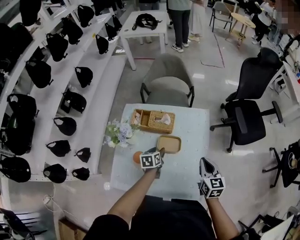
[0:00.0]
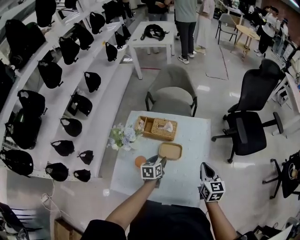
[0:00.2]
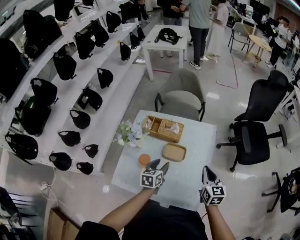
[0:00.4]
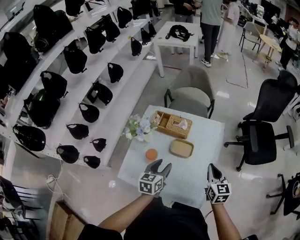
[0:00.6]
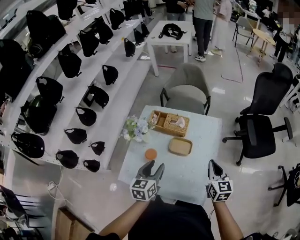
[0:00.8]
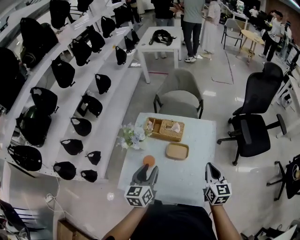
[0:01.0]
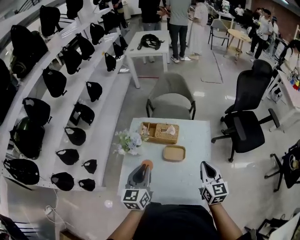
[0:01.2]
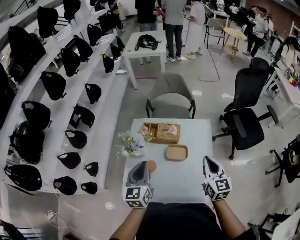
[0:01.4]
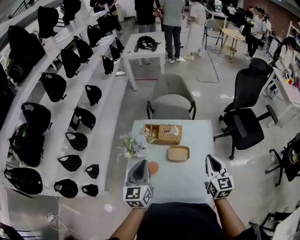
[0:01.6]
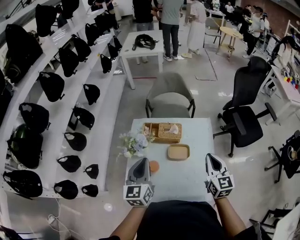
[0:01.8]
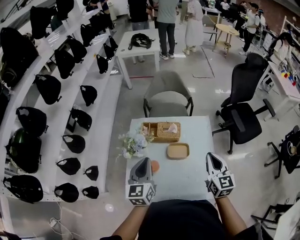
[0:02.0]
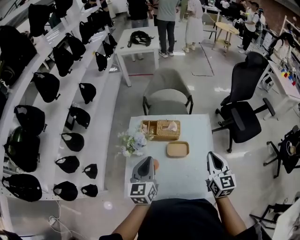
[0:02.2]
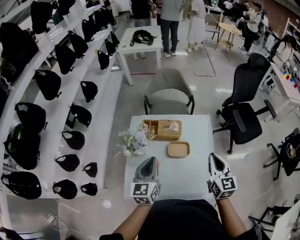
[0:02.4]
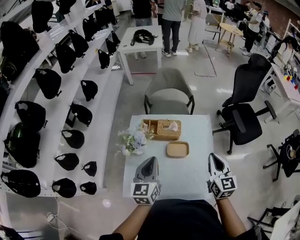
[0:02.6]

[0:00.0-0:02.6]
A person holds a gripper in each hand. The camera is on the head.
0:00.0 to 0:01.2: The left gripper shifts approximately 30 cm upward and backward, points its fingers approximately 30 degrees further upward, and closes; the right gripper goes some 10 cm upward.

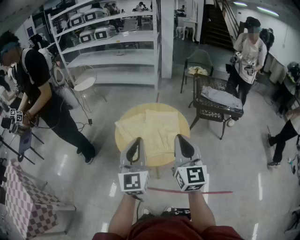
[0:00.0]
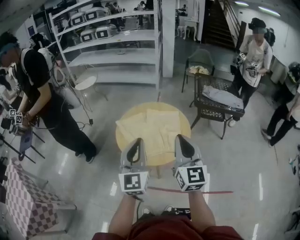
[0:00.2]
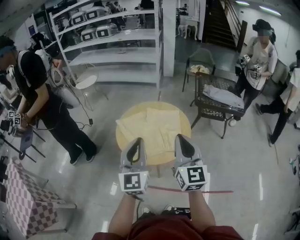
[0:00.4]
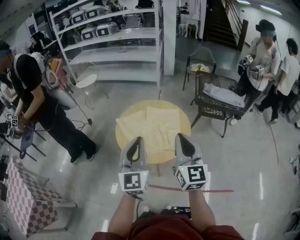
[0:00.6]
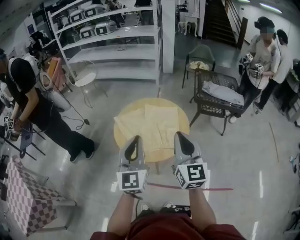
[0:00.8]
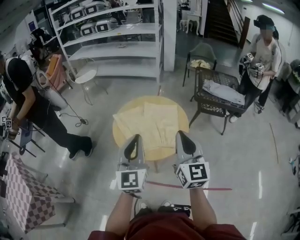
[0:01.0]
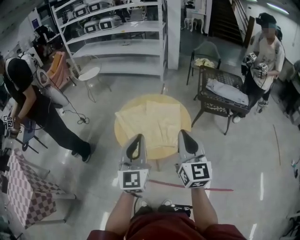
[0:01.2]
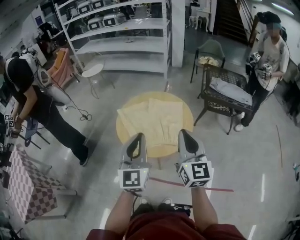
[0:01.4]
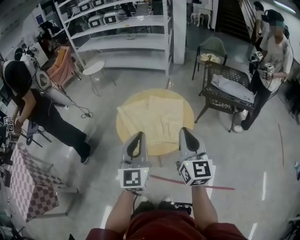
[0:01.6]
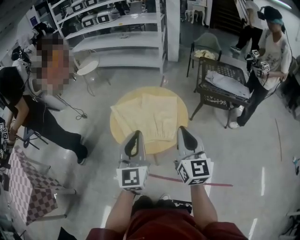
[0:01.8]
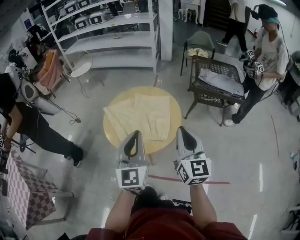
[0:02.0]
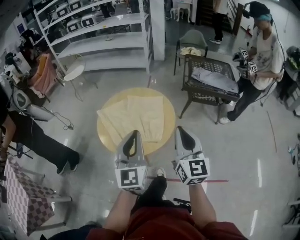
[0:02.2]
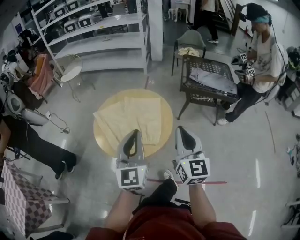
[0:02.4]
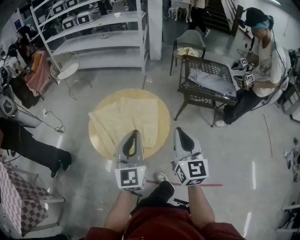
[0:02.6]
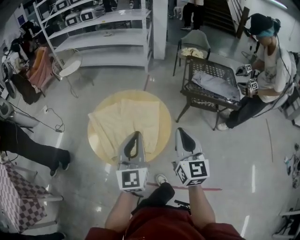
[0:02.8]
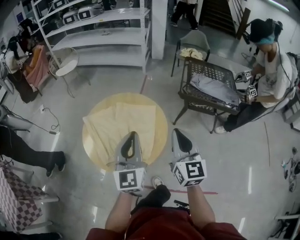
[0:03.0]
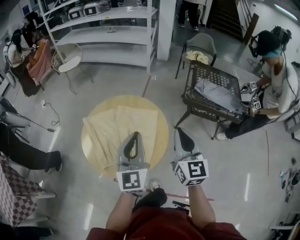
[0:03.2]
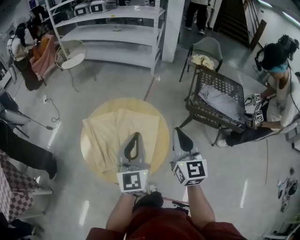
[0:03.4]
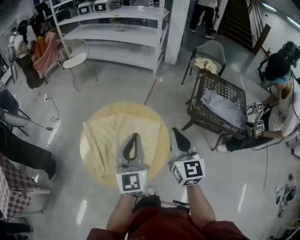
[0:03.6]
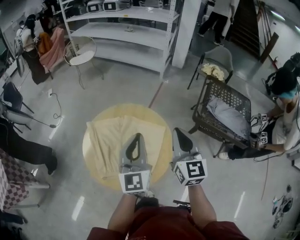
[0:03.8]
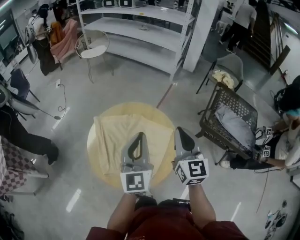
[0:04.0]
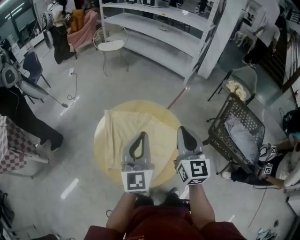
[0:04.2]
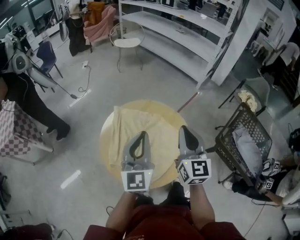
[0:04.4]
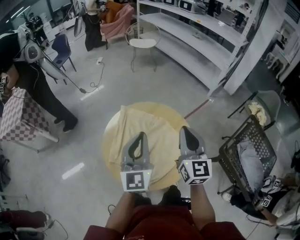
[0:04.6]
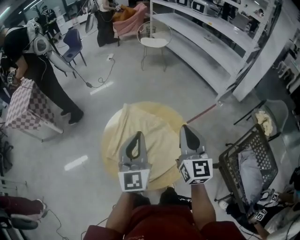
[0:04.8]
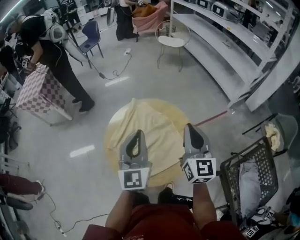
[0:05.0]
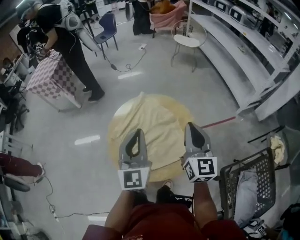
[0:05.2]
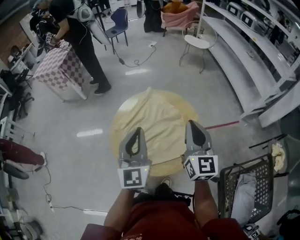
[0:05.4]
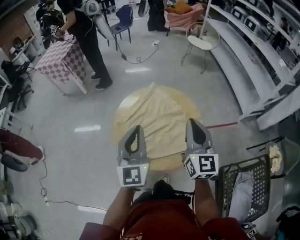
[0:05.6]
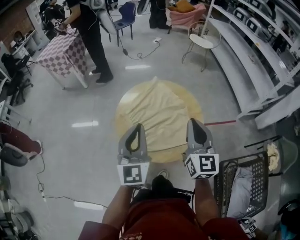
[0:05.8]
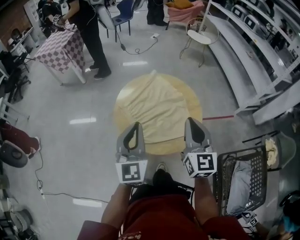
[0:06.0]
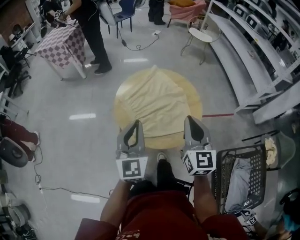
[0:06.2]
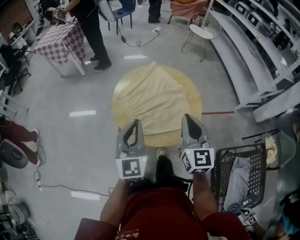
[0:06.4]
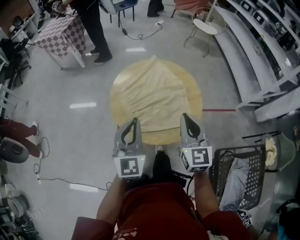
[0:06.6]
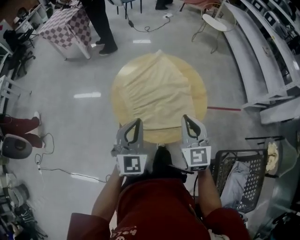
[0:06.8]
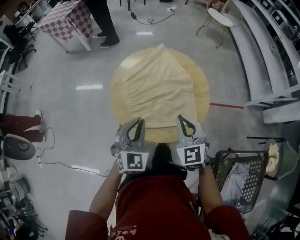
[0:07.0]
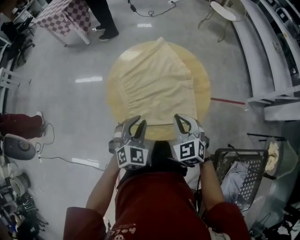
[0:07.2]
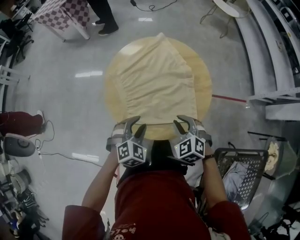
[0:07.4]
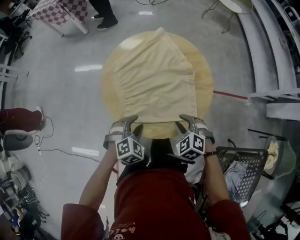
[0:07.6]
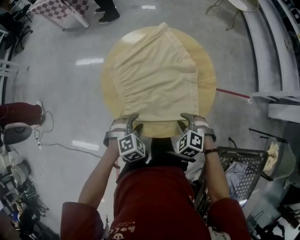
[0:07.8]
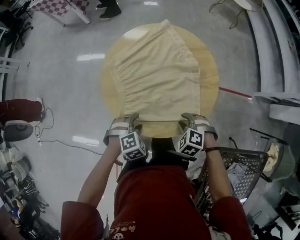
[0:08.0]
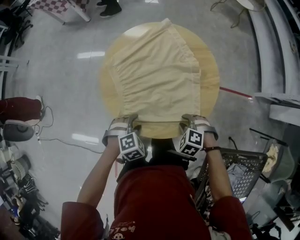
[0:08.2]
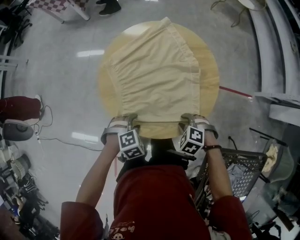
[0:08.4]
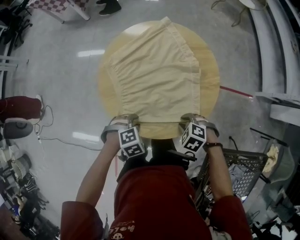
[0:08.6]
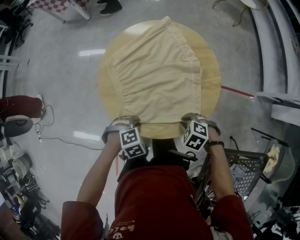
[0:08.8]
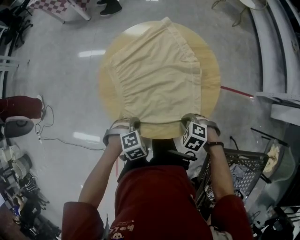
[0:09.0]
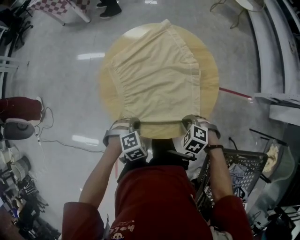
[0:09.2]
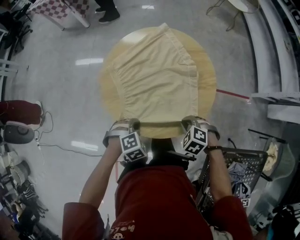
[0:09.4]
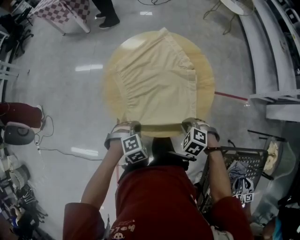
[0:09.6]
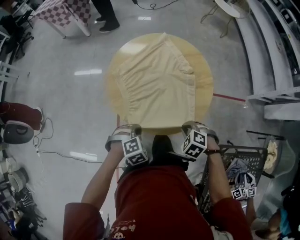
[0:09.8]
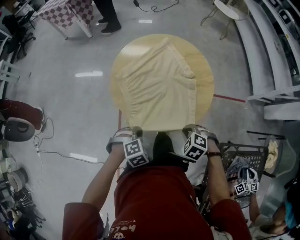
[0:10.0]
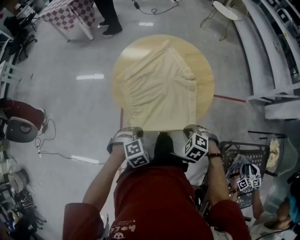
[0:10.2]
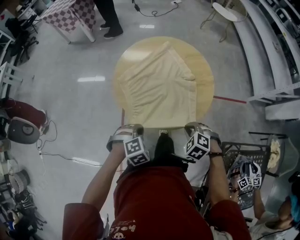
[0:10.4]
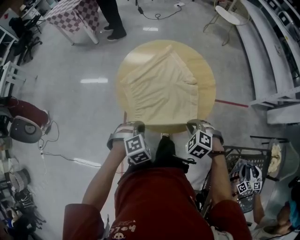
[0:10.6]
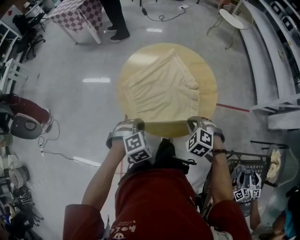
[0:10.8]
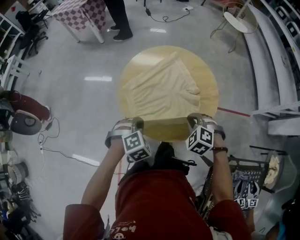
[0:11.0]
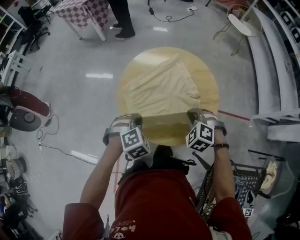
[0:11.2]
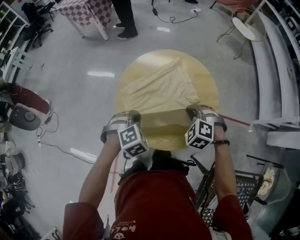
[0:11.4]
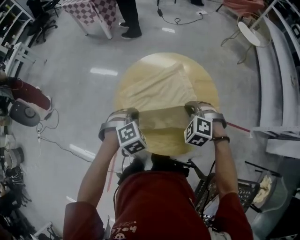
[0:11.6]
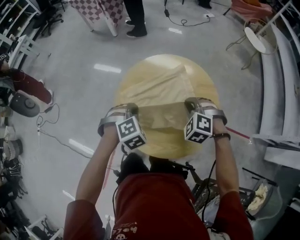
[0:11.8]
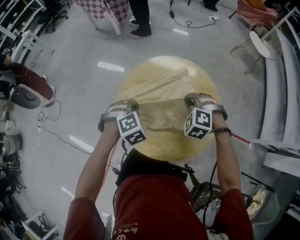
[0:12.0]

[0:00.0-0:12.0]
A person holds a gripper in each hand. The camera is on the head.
0:00.0 to 0:01.6: Both grippers move to the right, some 5 cm.
0:01.6 to 0:03.0: Both grippers travel together forward, to the right and downward, about 20 cm.
0:03.0 to 0:04.4: The right gripper ends up approximately 25 cm from where it was, and changes its angle by some 30 degrees. Meanwhile the left gripper shifts by approximately 15 cm, and turns by approximately 30 degrees.
0:04.4 to 0:06.0: The right gripper ends up about 10 cm from where it was, and rotates about 40 degrees. The left gripper moves approximately 20 cm, and turns by roughly 40 degrees.
0:06.0 to 0:07.6: Both grippers travel together downward, about 30 cm. The left gripper tips its fingers downward by some 60 degrees, and opens its fingers, while the right gripper tilts its fingers about 60 degrees downward, and opens.
0:07.6 to 0:09.0: Both grippers travel together downward, roughly 5 cm. The left gripper changes its angle by roughly 20 degrees, and closes. Meanwhile the right gripper turns by about 30 degrees, and closes up.
0:09.0 to 0:10.4: The left gripper shifts by approximately 10 cm, while the right gripper changes place by roughly 10 cm.
0:10.4 to 0:12.0: The grippers both shift forward by about 25 cm. The left gripper changes its angle by approximately 20 degrees; the right gripper turns by roughly 30 degrees.

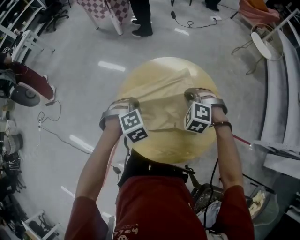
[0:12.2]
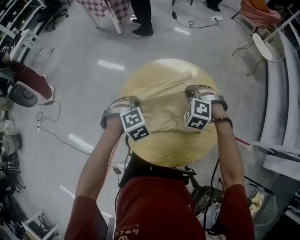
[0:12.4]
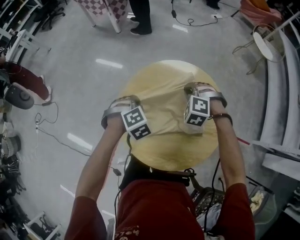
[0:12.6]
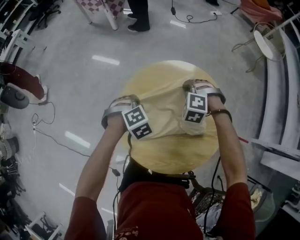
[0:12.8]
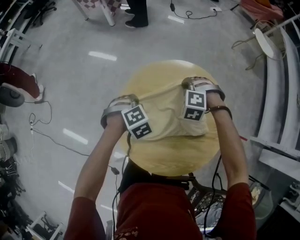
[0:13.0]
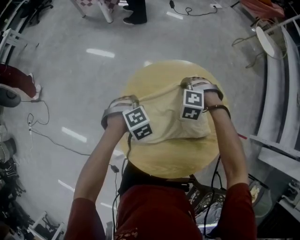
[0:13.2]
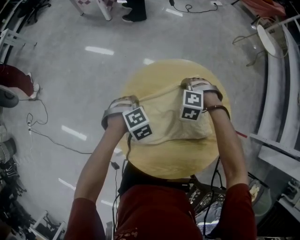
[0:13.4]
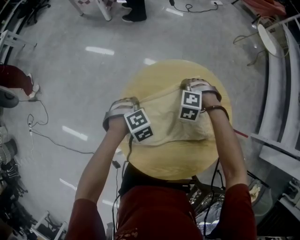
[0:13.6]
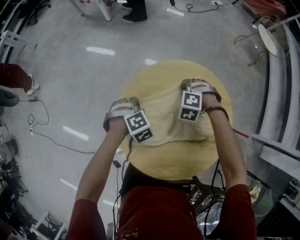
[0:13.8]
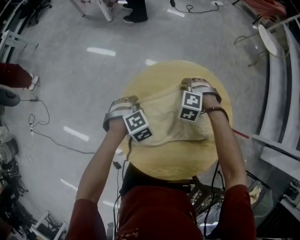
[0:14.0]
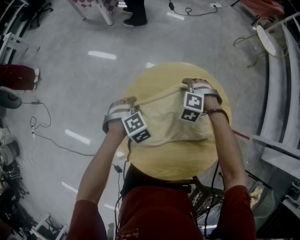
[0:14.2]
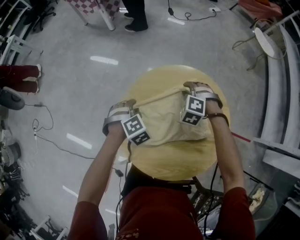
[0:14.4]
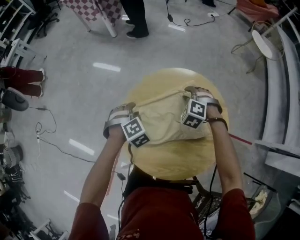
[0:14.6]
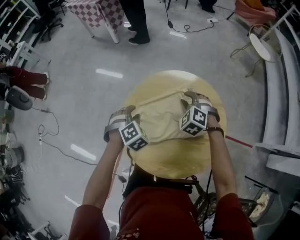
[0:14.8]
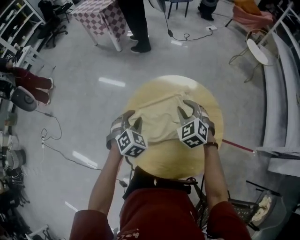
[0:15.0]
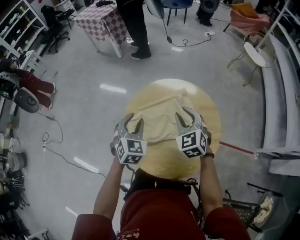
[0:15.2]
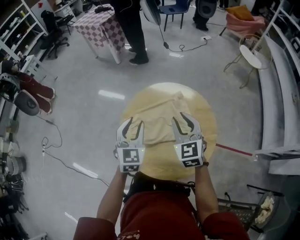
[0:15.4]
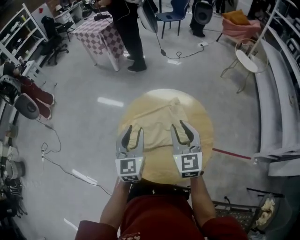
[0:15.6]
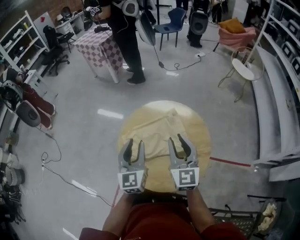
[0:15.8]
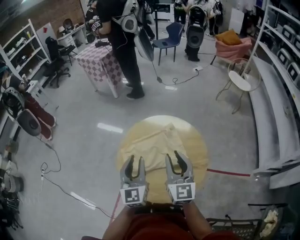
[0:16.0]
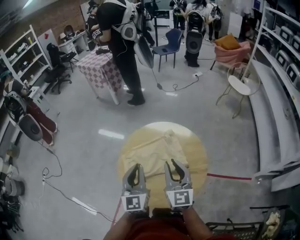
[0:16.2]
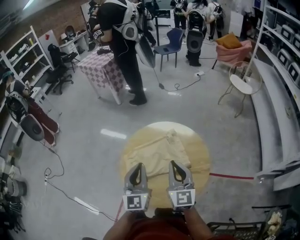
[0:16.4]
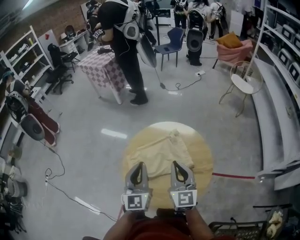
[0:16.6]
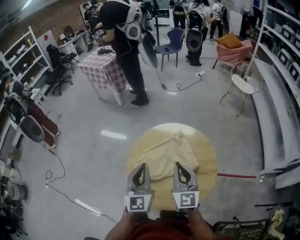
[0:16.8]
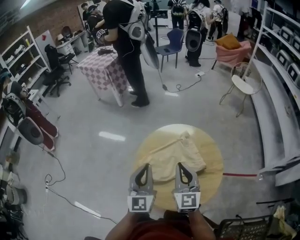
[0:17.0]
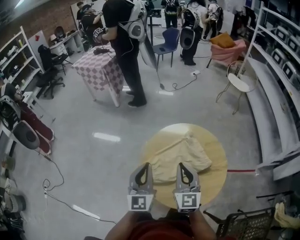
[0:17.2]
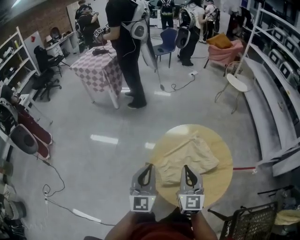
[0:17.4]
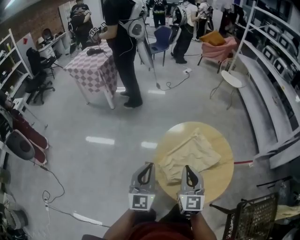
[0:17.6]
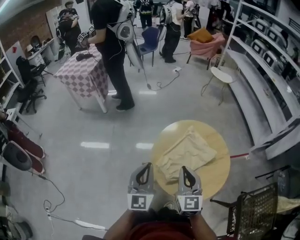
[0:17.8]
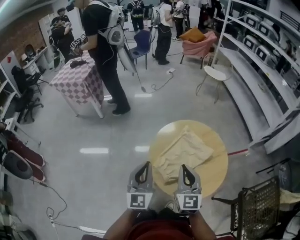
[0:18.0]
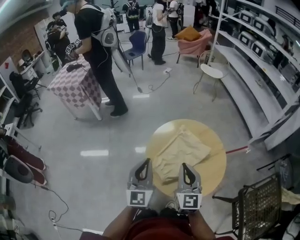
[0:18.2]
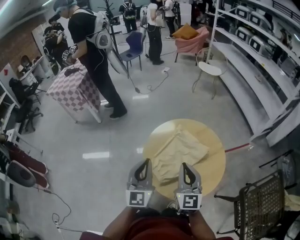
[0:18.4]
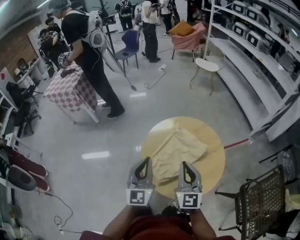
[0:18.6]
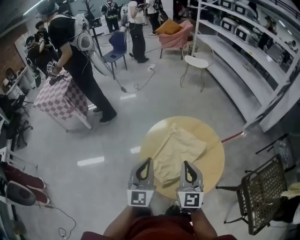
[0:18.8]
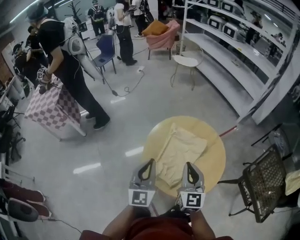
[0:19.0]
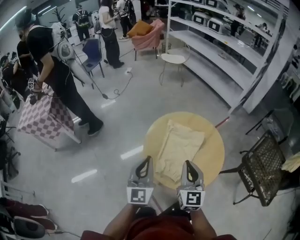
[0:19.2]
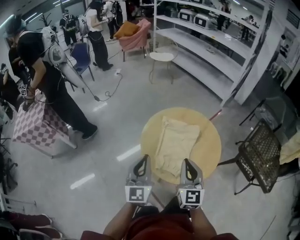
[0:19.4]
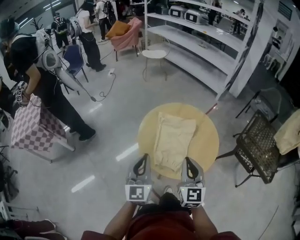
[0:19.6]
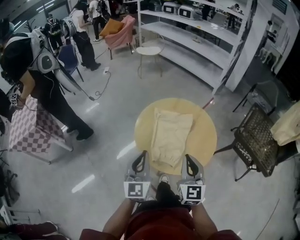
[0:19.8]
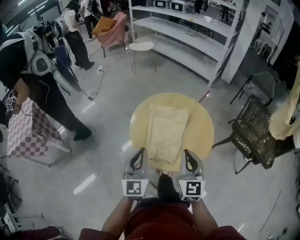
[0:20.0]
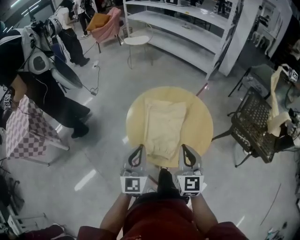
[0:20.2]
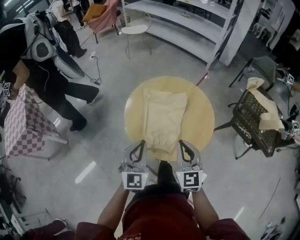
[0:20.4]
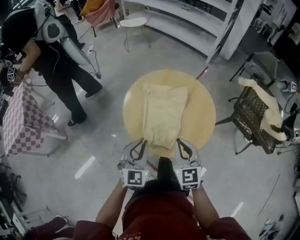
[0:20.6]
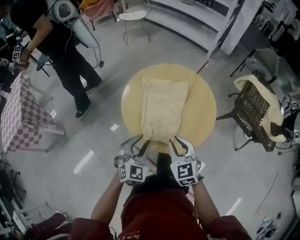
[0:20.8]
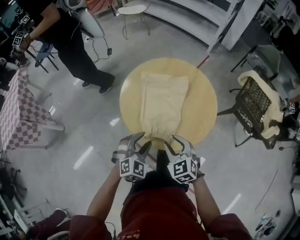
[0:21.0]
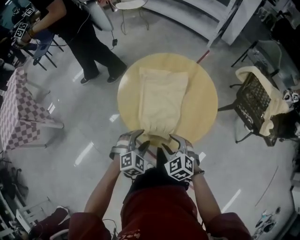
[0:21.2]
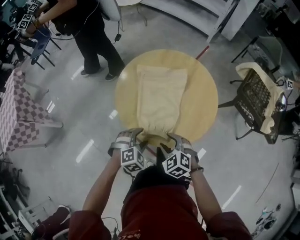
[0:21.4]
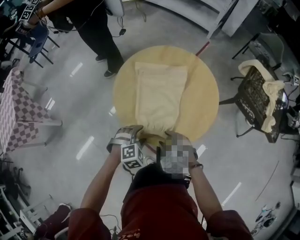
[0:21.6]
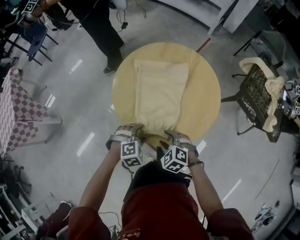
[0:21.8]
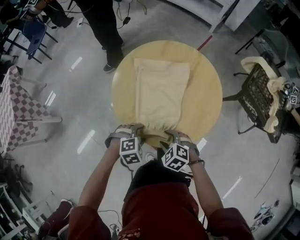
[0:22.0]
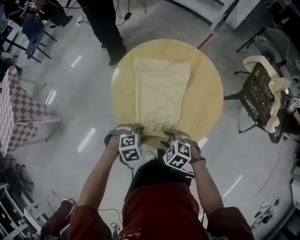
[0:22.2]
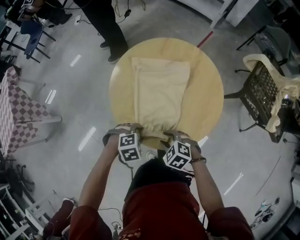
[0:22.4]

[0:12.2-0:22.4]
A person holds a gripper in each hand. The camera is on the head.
0:12.2 to 0:13.6: The right gripper heads forward and downward, covering roughly 20 cm, while the left gripper goes roughly 15 cm downward and forward.
0:13.6 to 0:15.2: The two grippers go roughly 25 cm upward and backward. The left gripper tips its fingers upward by approximately 40 degrees, and opens its fingers; the right gripper angles its fingers upward, by about 40 degrees.
0:15.2 to 0:16.6: The left gripper goes about 15 cm upward and backward, points its fingers roughly 40 degrees further upward, and closes, while the right gripper is displaced backward and upward by about 15 cm, turns by some 40 degrees, and closes up.
0:16.6 to 0:18.0: The left gripper shifts by approximately 20 cm, and changes its angle by approximately 30 degrees. Meanwhile the right gripper shifts by approximately 20 cm, and swivels approximately 30 degrees.
0:18.0 to 0:19.4: The left gripper ends up about 10 cm from where it was, and swivels approximately 30 degrees. The right gripper swivels some 30 degrees.
0:19.4 to 0:21.0: The two grippers go roughly 20 cm downward. The right gripper angles its fingers downward, by roughly 30 degrees, and opens its fingers, while the left gripper tips its fingers downward by roughly 40 degrees, and opens its fingers.
0:21.0 to 0:22.4: The grippers both shift downward by about 10 cm. The right gripper turns by some 30 degrees. The left gripper points its fingers about 40 degrees further downward.
